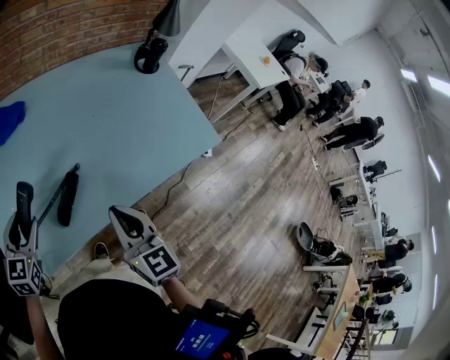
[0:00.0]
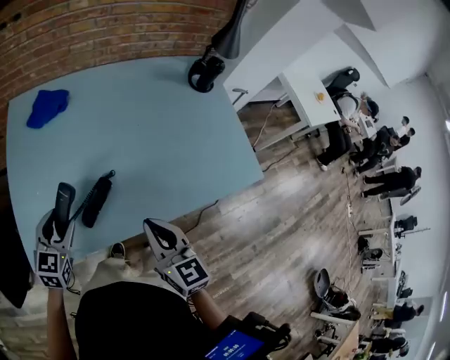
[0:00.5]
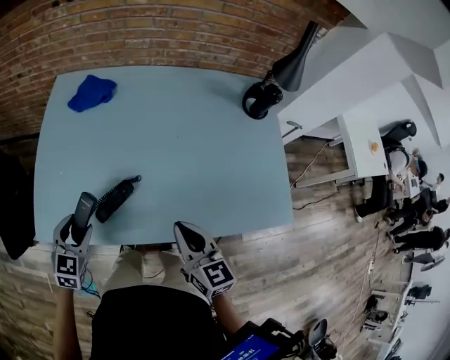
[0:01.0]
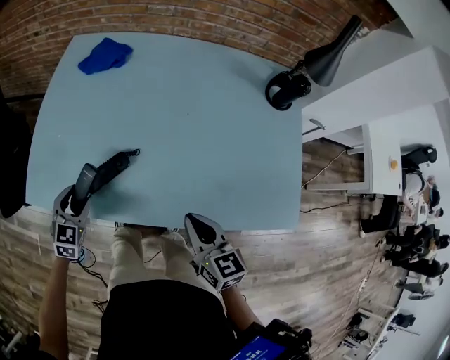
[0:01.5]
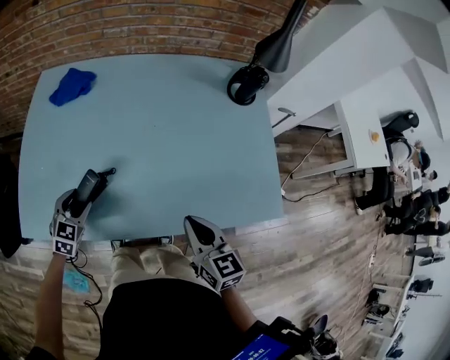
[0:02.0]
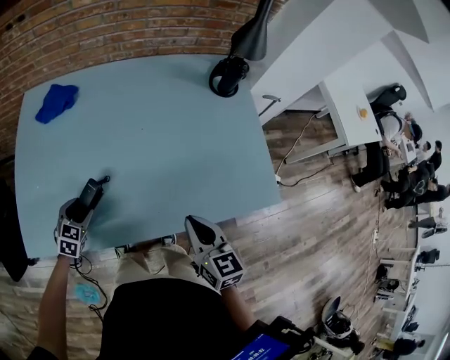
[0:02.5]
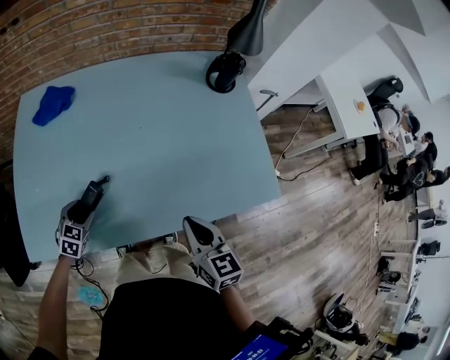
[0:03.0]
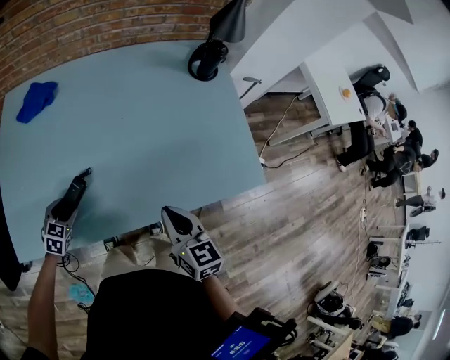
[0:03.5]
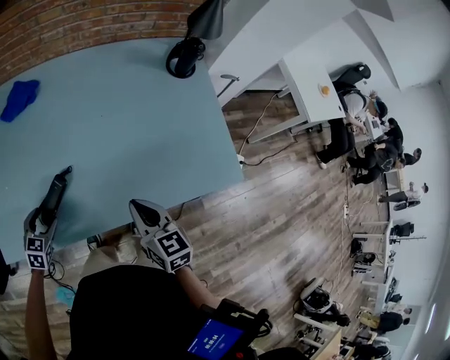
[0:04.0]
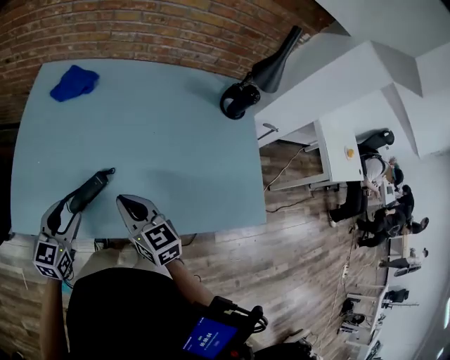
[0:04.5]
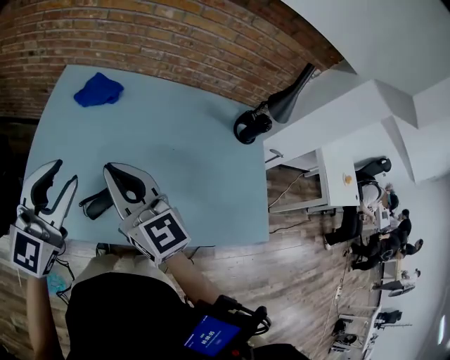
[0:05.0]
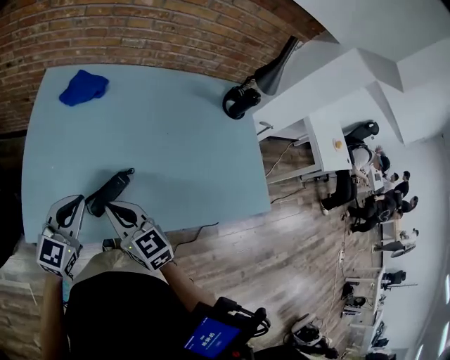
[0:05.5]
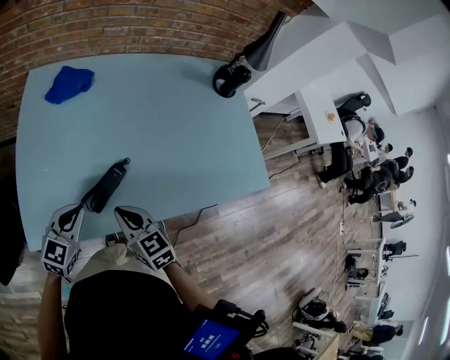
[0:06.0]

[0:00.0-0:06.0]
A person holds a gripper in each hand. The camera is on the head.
0:00.0 to 0:02.0: The right gripper shifts by approximately 25 cm, and swivels some 20 degrees; the left gripper goes about 15 cm downward, and turns by approximately 20 degrees.
0:02.0 to 0:04.0: The left gripper shifts by some 5 cm.
0:04.0 to 0:06.0: The left gripper shifts approximately 5 cm to the left, travels upward and back again, approximately 35 cm each way, rotates approximately 30 degrees, and closes, while the right gripper is displaced to the left by approximately 30 cm.

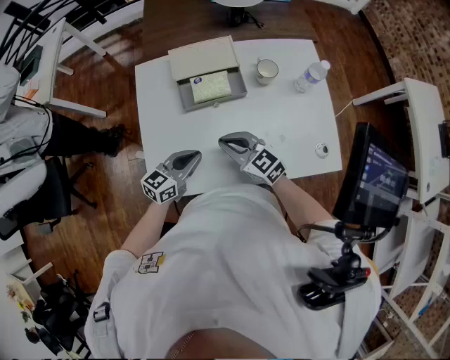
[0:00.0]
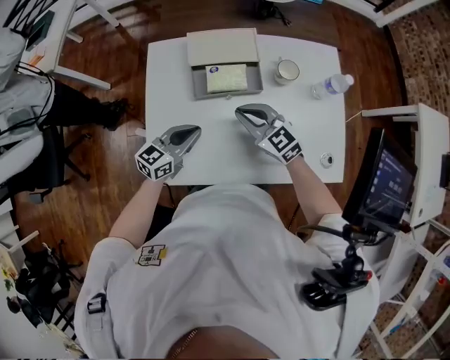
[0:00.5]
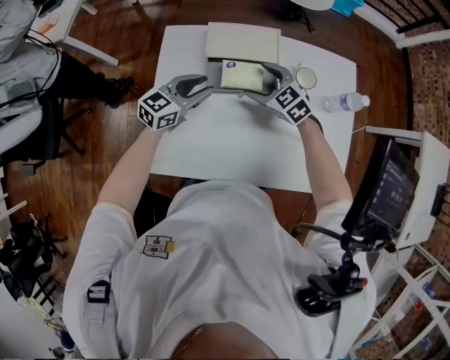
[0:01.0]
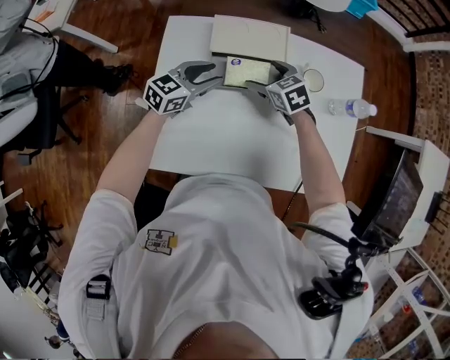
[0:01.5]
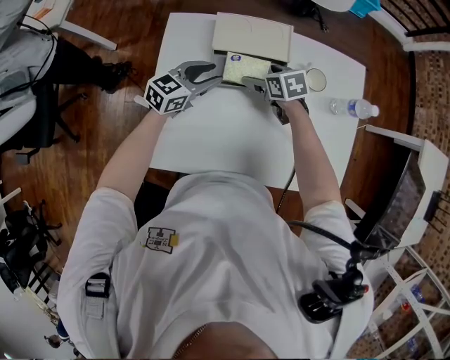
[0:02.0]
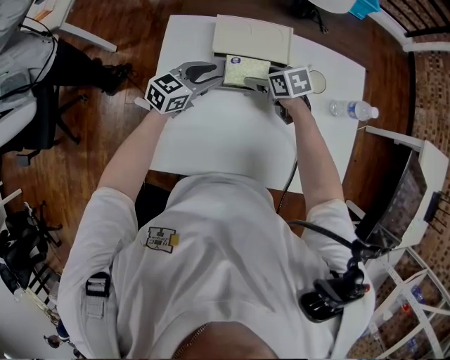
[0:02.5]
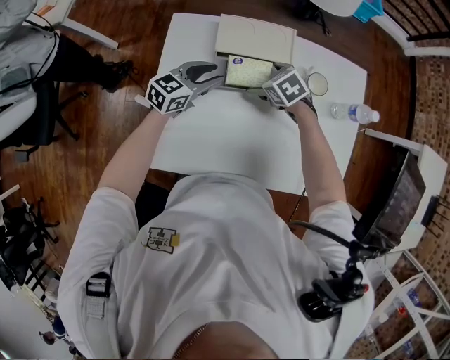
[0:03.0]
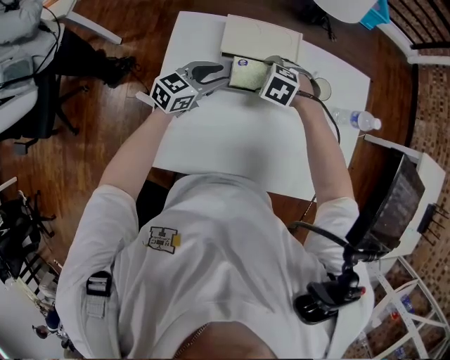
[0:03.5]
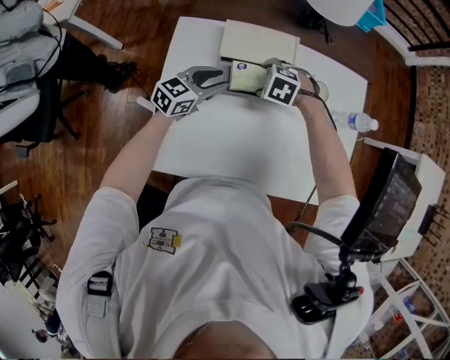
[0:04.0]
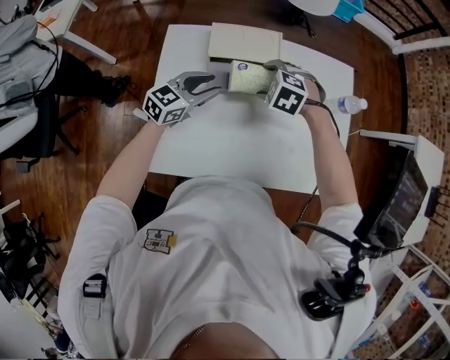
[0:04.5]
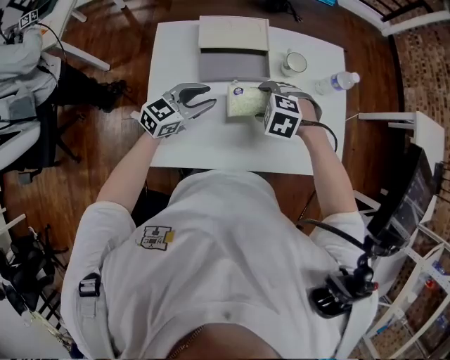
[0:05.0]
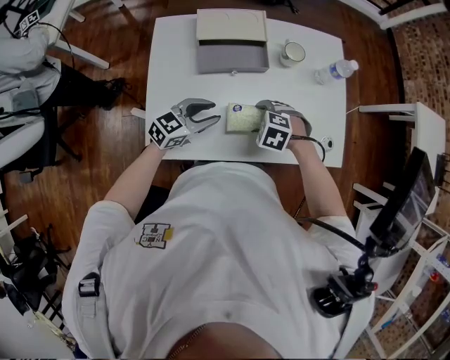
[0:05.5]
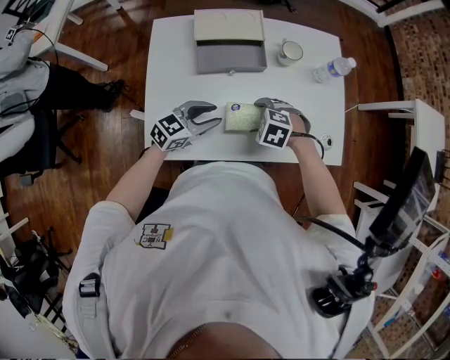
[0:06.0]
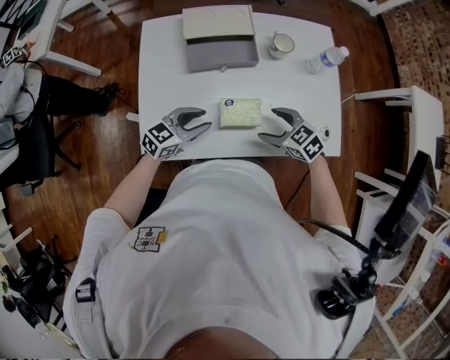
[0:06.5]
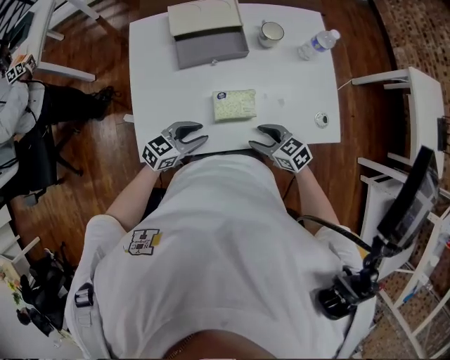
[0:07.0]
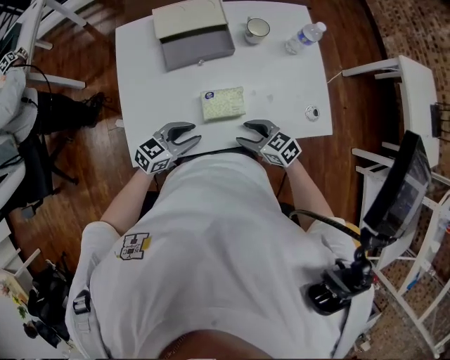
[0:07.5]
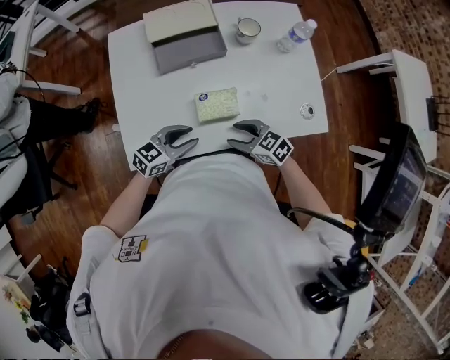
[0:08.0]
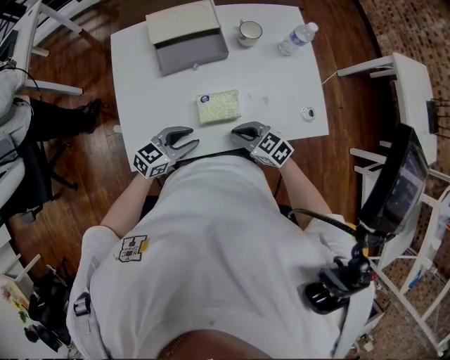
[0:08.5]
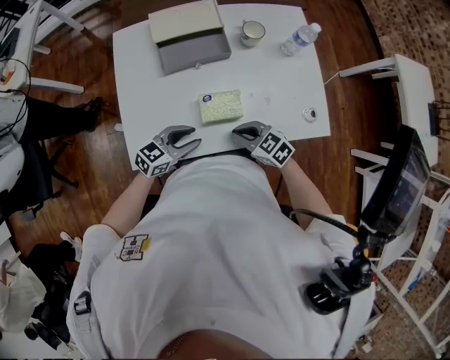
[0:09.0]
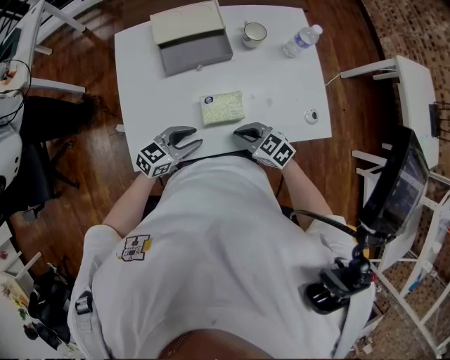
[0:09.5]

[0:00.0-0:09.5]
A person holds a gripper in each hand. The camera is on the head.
0:00.0 to 0:02.0: The right gripper is displaced forward and downward by some 25 cm, tips its fingers downward by some 30 degrees, and opens its fingers; the left gripper heads forward, covering approximately 20 cm, and opens.
0:02.0 to 0:04.0: The right gripper rotates around the line of its fingers by approximately 60 degrees, counterclockwise from behind.
0:04.0 to 0:05.5: The right gripper goes upward and returns, approximately 5 cm each way. Meanwhile the left gripper shifts by roughly 20 cm.
0:05.5 to 0:07.5: The right gripper moves approximately 10 cm, and tilts its fingers about 40 degrees upward; the left gripper changes place by some 10 cm.
0:07.5 to 0:09.5: The right gripper closes.

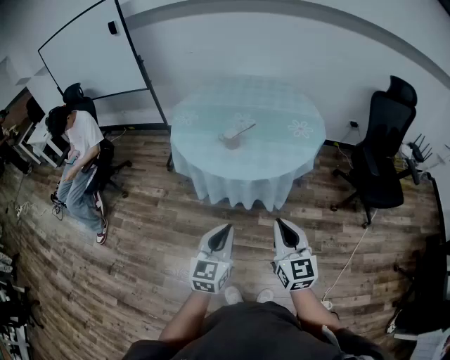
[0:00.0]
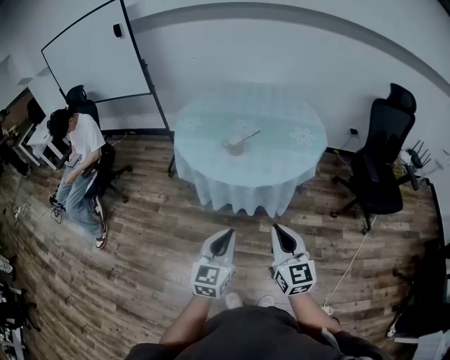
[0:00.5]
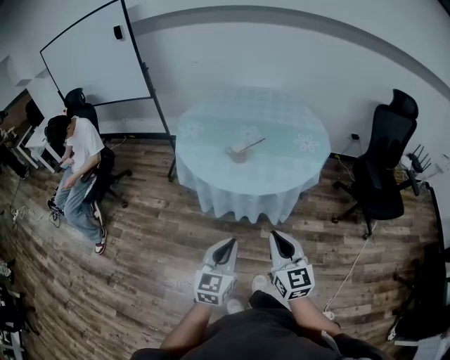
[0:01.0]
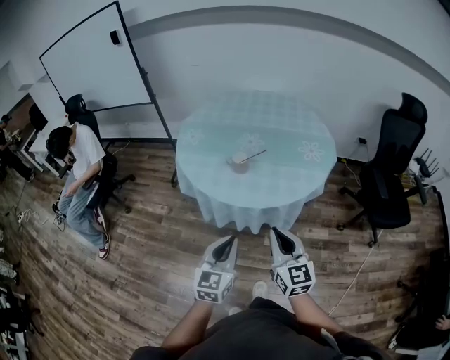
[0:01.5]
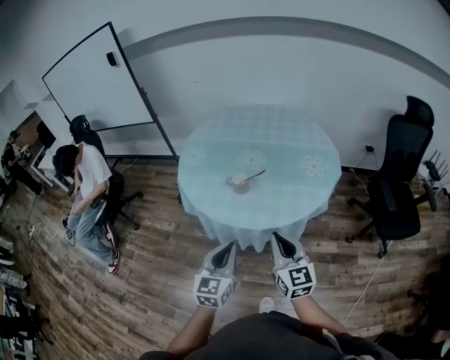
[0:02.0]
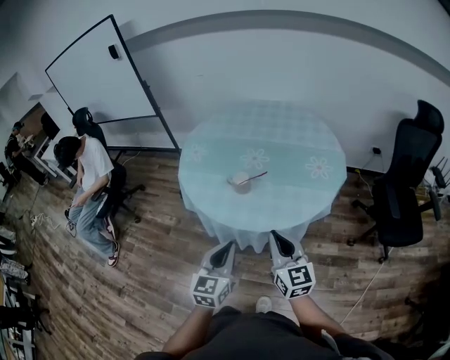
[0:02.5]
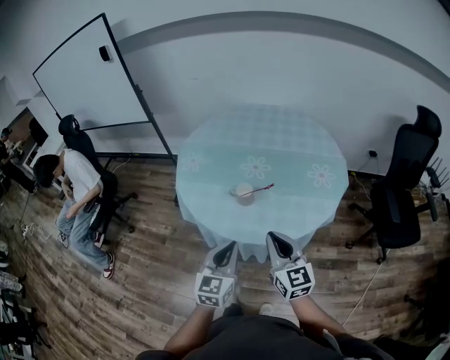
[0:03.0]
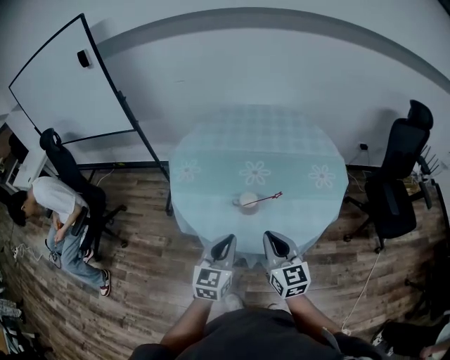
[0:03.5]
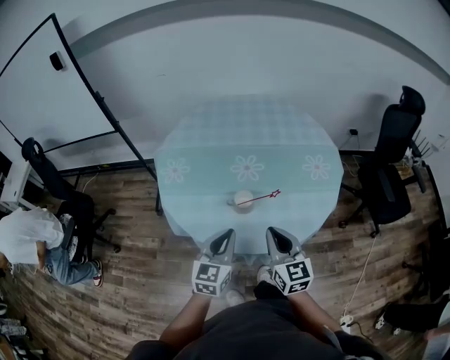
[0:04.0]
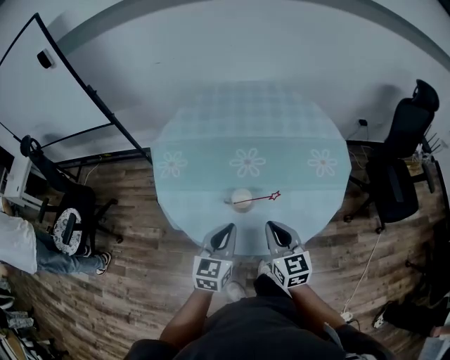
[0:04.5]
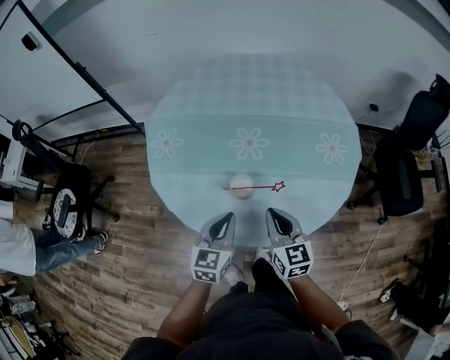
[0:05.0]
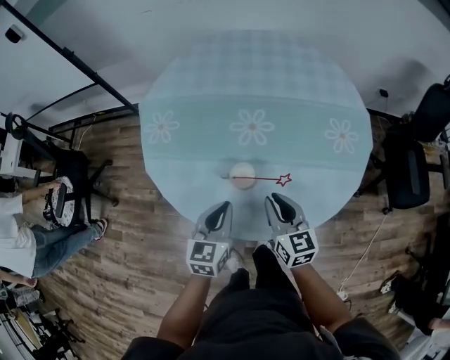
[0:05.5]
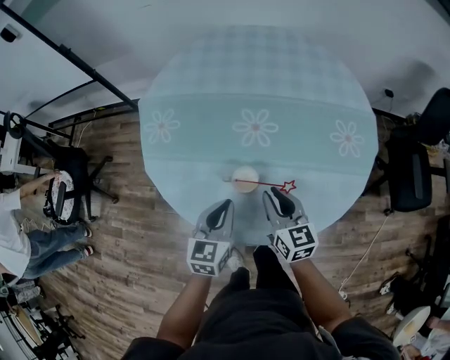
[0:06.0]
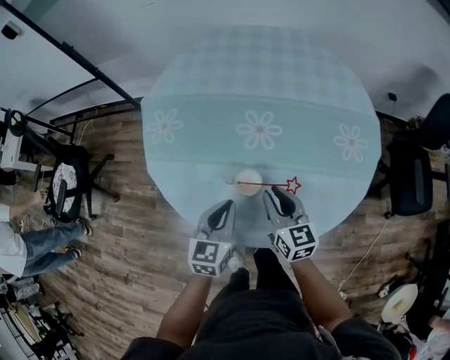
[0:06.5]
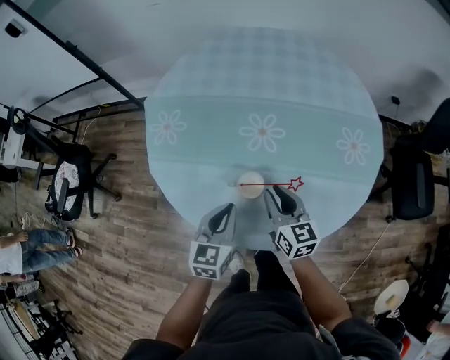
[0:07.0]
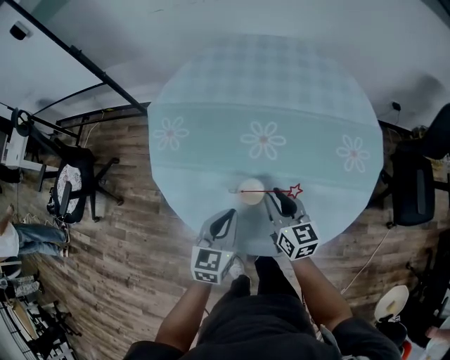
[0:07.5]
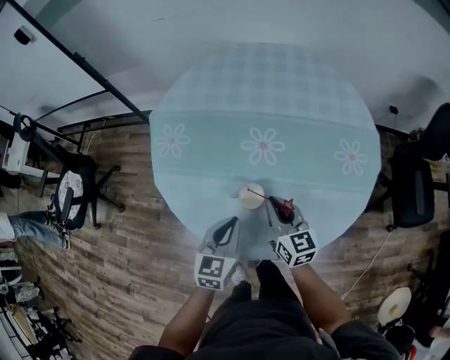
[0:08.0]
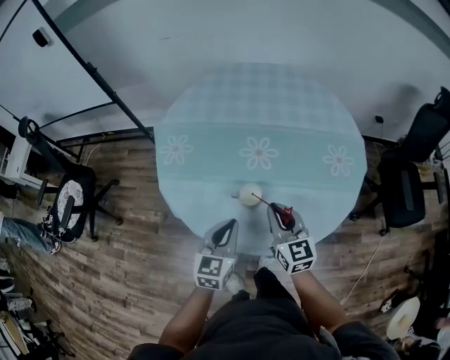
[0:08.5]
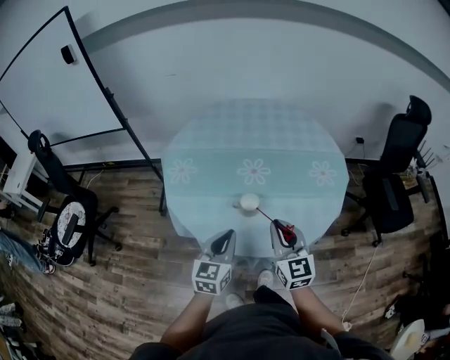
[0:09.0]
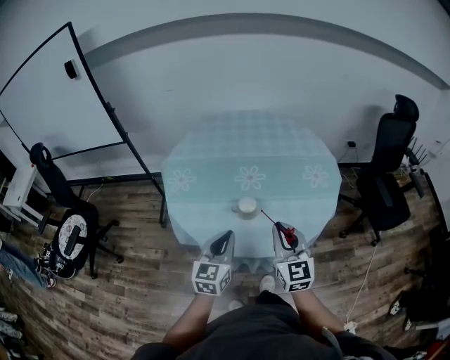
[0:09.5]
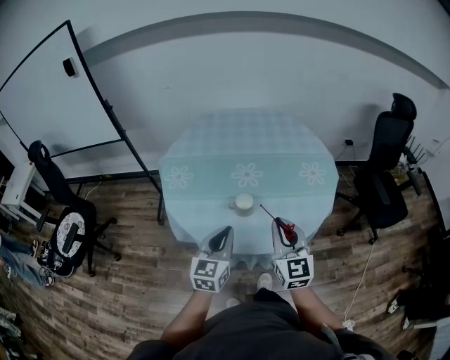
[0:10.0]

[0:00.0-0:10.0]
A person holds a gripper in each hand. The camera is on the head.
0:00.0 to 0:02.0: Both grippers travel together forward, some 20 cm.
0:02.0 to 0:04.0: The grippers both shift forward and to the left by roughly 25 cm.
0:04.0 to 0:06.0: The left gripper travels downward and forward by about 20 cm, while the right gripper travels forward and downward by roughly 20 cm.
0:06.0 to 0:08.0: The grippers stay close to where they were, moving slightly.
0:08.0 to 0:10.0: The two grippers go approximately 25 cm backward and upward. The right gripper swivels some 30 degrees.

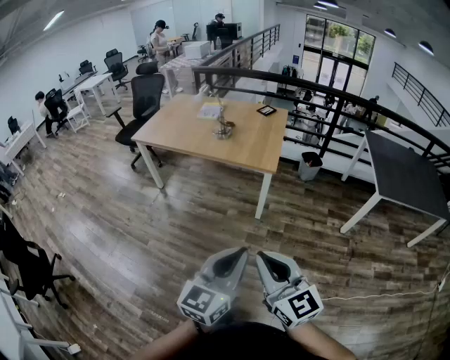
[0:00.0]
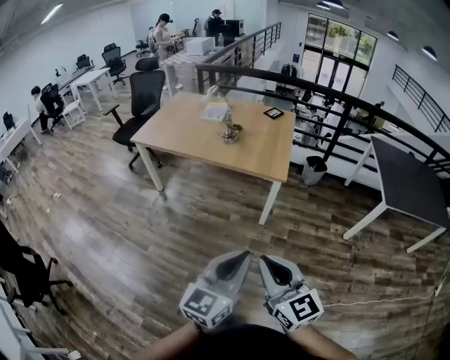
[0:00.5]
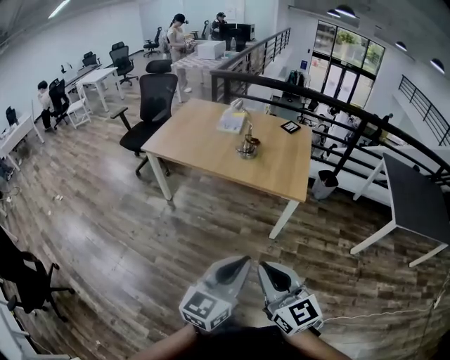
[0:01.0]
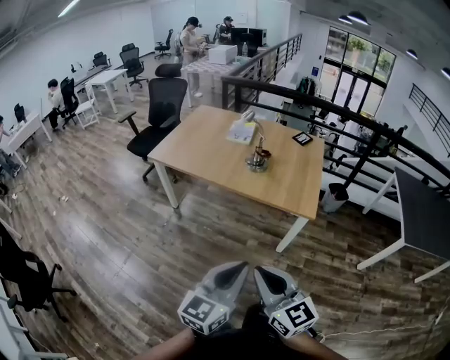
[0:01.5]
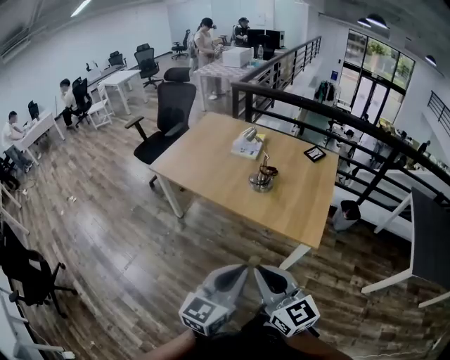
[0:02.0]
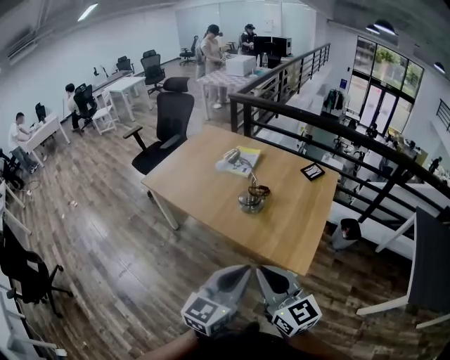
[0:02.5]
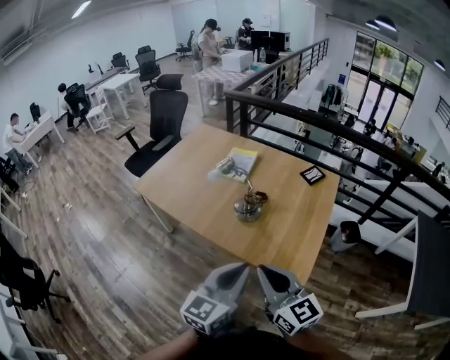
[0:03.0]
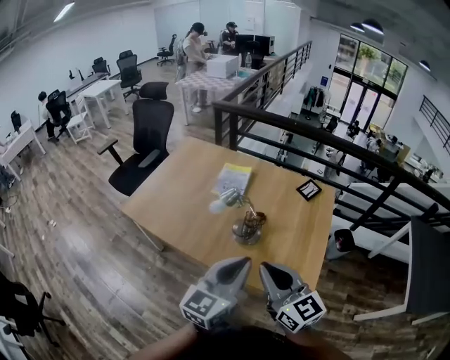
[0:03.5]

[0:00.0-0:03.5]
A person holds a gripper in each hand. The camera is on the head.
0:00.0 to 0:02.0: Both grippers move forward, about 40 cm.
0:02.0 to 0:03.5: The grippers both shift forward by some 30 cm.
